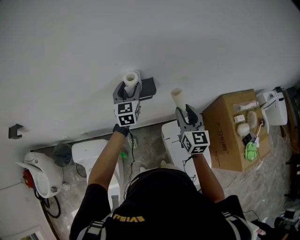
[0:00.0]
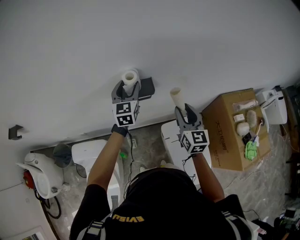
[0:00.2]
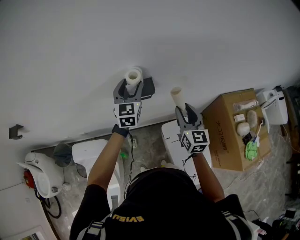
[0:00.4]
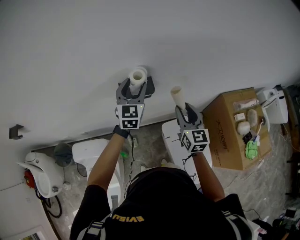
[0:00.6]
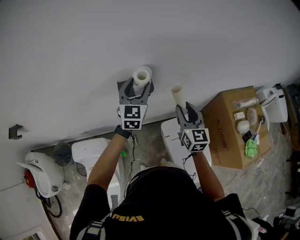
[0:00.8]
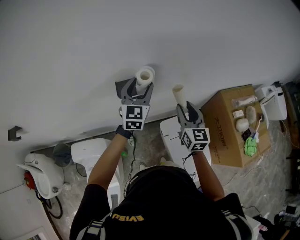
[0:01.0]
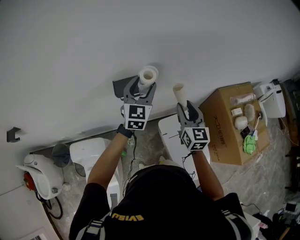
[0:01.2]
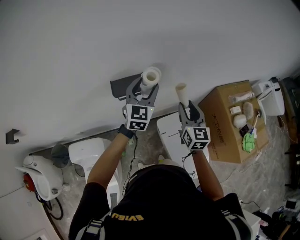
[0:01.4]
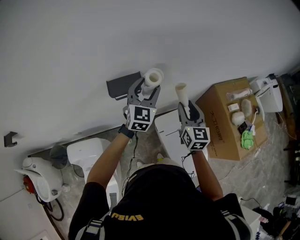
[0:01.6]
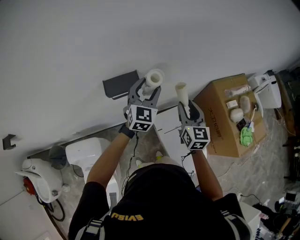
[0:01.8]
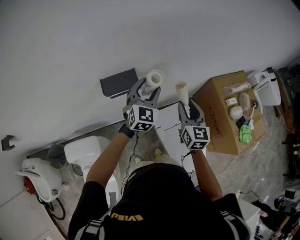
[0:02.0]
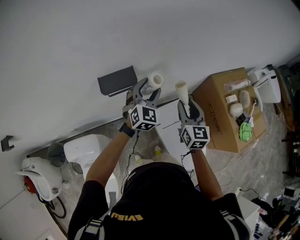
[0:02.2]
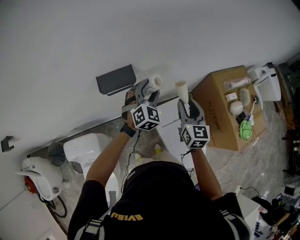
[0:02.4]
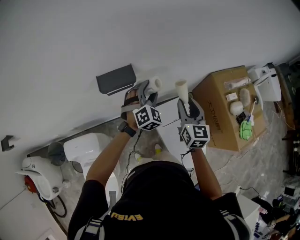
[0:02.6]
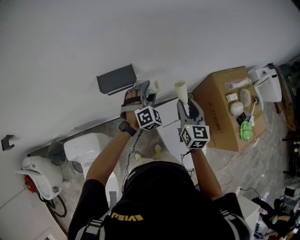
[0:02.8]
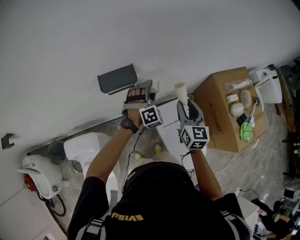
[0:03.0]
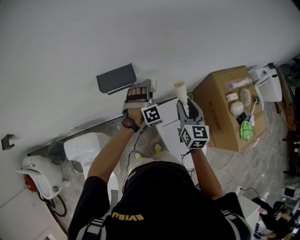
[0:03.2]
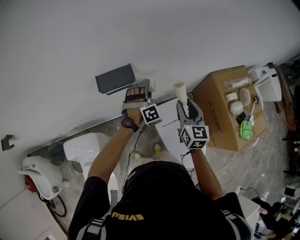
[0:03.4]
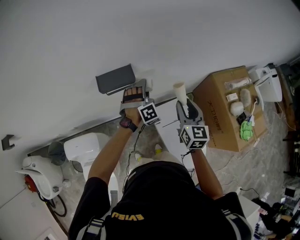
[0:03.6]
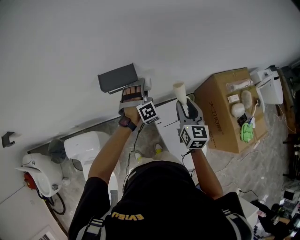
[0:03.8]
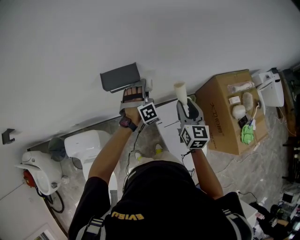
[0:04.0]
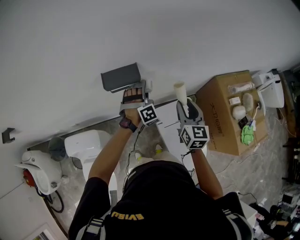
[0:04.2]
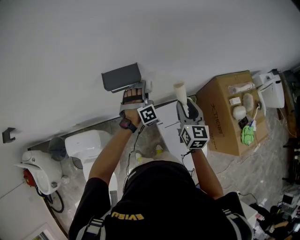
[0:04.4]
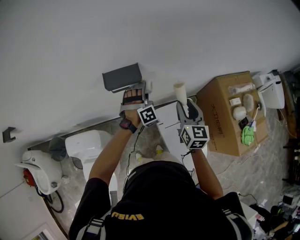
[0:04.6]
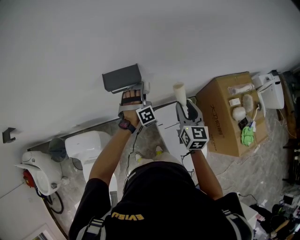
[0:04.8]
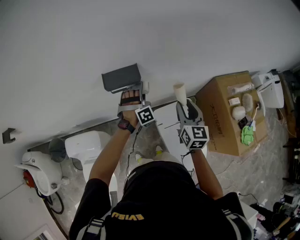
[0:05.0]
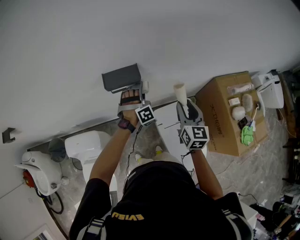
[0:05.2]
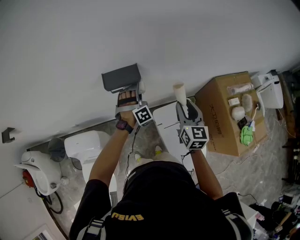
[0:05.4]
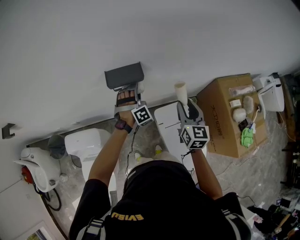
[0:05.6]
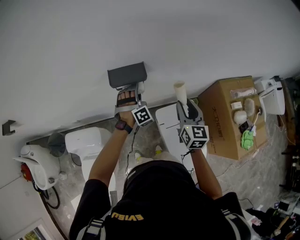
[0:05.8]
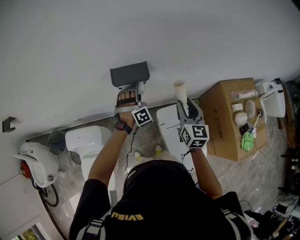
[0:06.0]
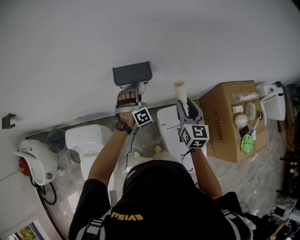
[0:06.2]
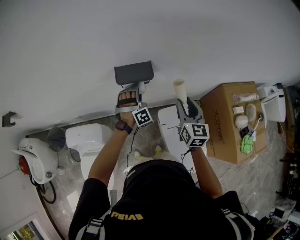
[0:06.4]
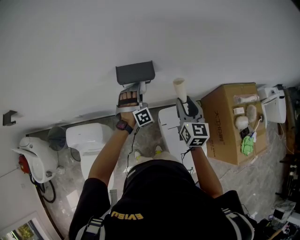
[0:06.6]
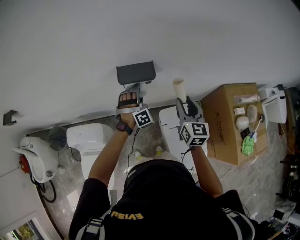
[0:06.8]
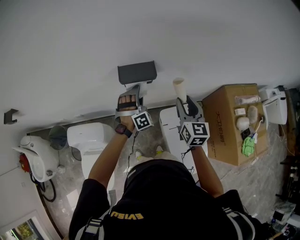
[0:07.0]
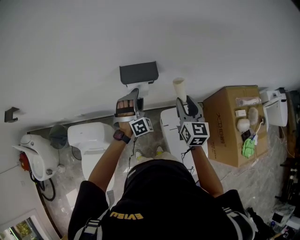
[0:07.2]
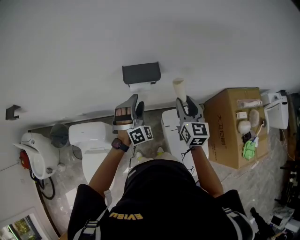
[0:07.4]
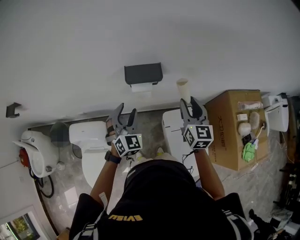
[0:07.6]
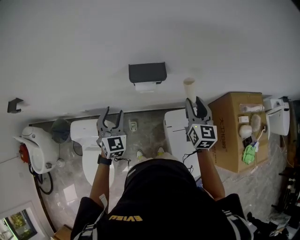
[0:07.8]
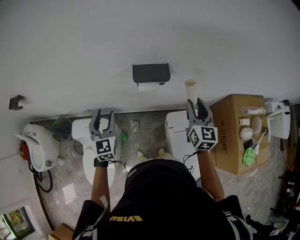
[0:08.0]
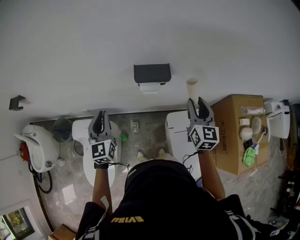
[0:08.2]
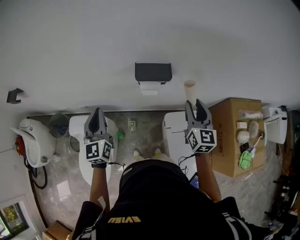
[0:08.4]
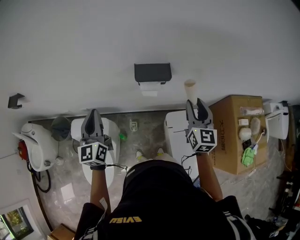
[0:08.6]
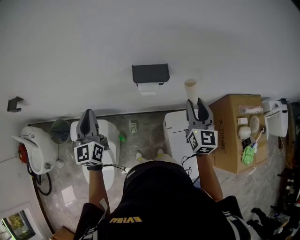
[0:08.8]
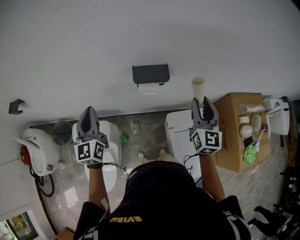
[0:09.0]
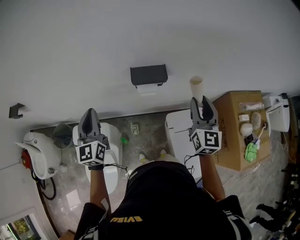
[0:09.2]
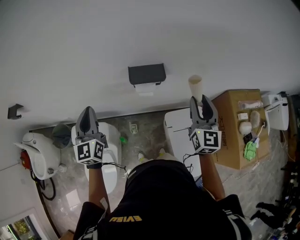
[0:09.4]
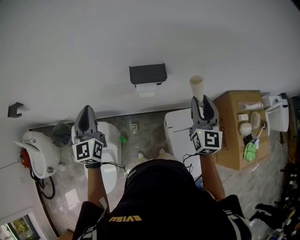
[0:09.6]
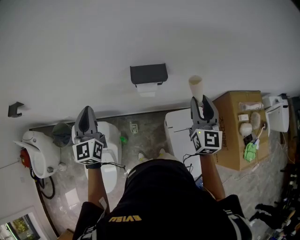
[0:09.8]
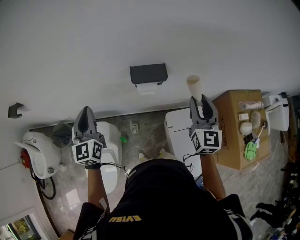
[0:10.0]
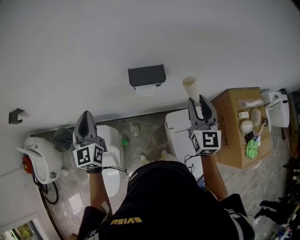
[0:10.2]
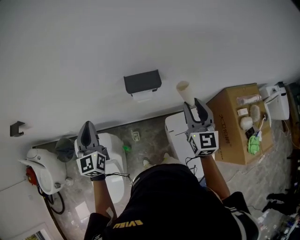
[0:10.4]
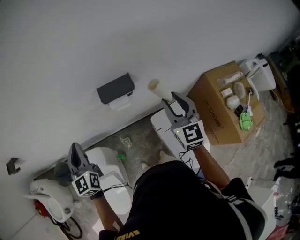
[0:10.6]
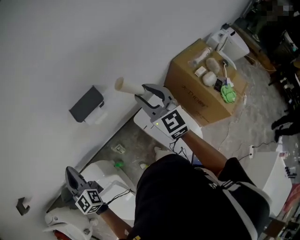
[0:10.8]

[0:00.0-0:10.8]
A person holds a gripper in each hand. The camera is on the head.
0:00.0 to 0:01.6: The left gripper travels to the right by approximately 15 cm, and swivels some 20 degrees; the right gripper heads to the right, covering roughly 5 cm.
0:01.6 to 0:03.0: The left gripper travels downward by approximately 15 cm, and rotates around the line of its fingers by about 50 degrees, clockwise from behind.
0:03.0 to 0:04.6: The grippers stay close to where they were, moving slightly.
0:04.6 to 0:06.2: The left gripper is displaced to the left by roughly 10 cm.
0:06.2 to 0:07.8: The left gripper heads to the left, backward and upward, covering about 25 cm, and twists about 50 degrees counterclockwise, seen from behind.
0:07.8 to 0:09.2: The right gripper shifts some 5 cm upward, while the left gripper is displaced upward and to the left by roughly 15 cm, changes its angle by some 30 degrees, and closes up.
0:09.2 to 0:10.8: There are only small adjustments of the grippers.

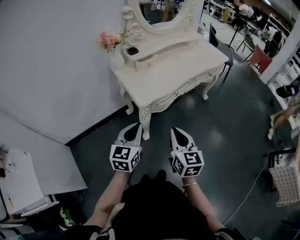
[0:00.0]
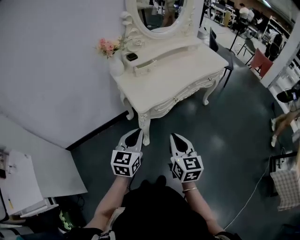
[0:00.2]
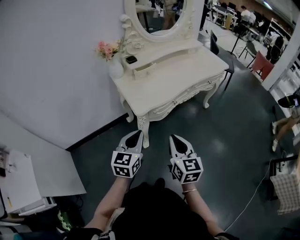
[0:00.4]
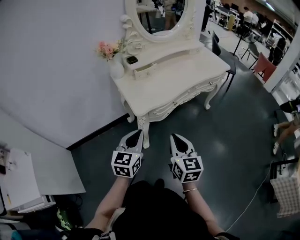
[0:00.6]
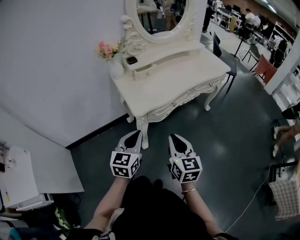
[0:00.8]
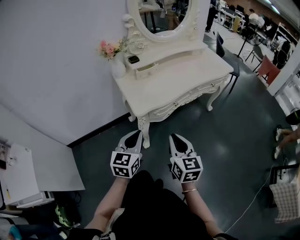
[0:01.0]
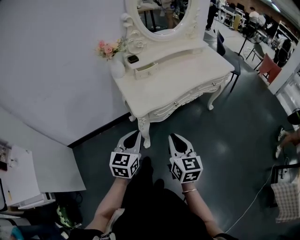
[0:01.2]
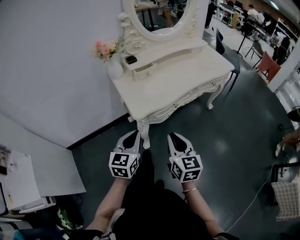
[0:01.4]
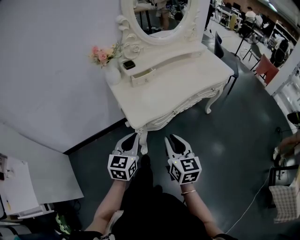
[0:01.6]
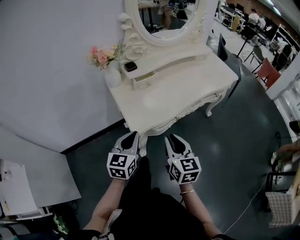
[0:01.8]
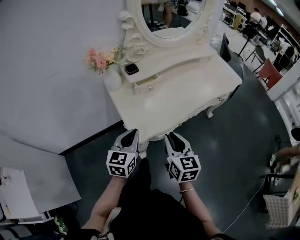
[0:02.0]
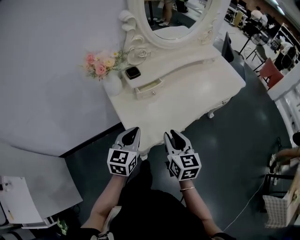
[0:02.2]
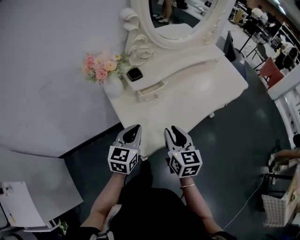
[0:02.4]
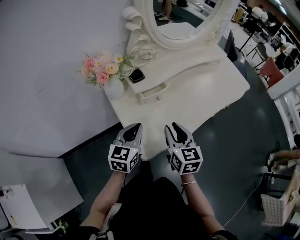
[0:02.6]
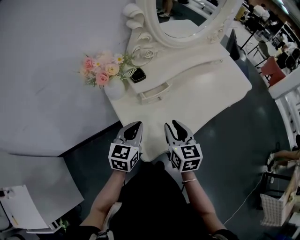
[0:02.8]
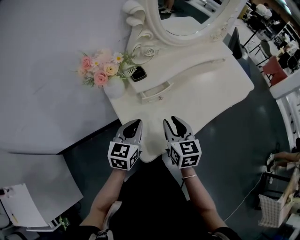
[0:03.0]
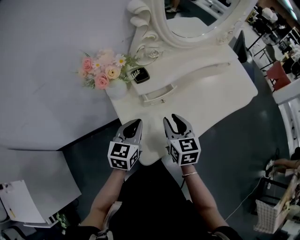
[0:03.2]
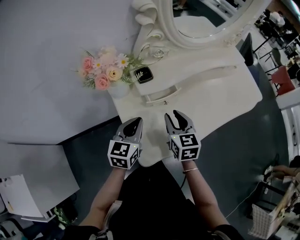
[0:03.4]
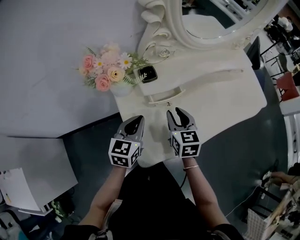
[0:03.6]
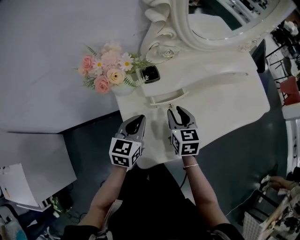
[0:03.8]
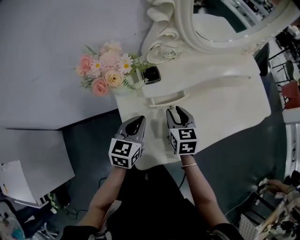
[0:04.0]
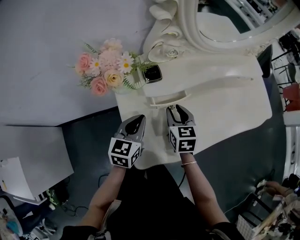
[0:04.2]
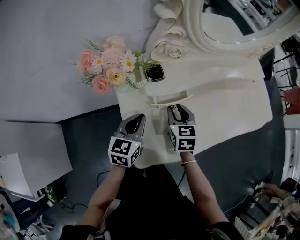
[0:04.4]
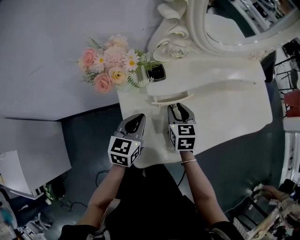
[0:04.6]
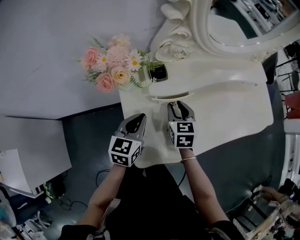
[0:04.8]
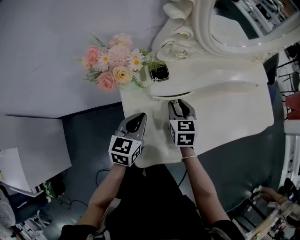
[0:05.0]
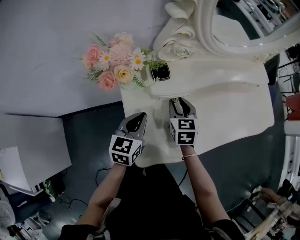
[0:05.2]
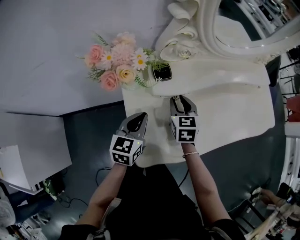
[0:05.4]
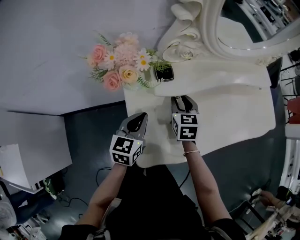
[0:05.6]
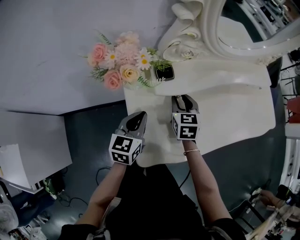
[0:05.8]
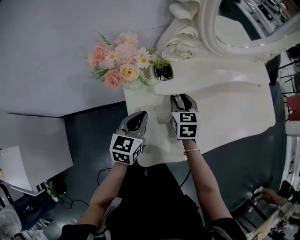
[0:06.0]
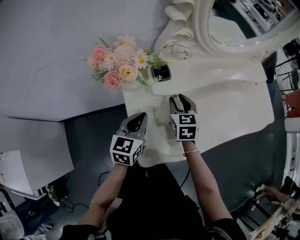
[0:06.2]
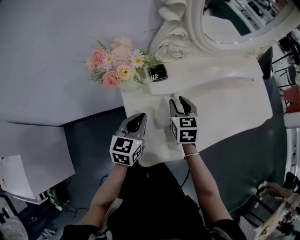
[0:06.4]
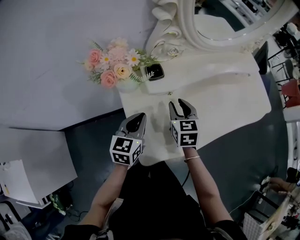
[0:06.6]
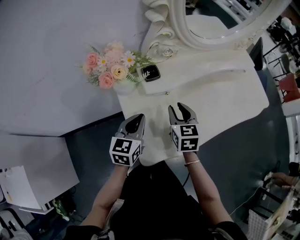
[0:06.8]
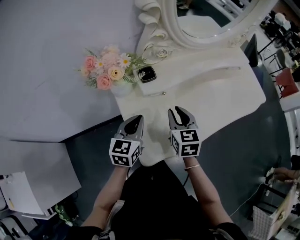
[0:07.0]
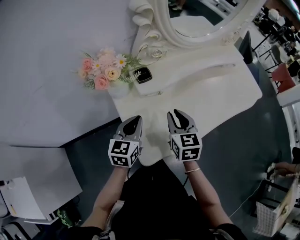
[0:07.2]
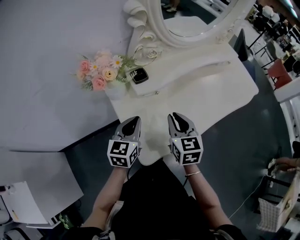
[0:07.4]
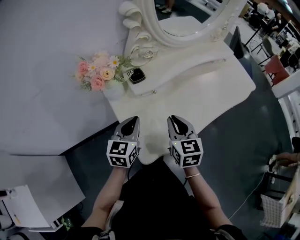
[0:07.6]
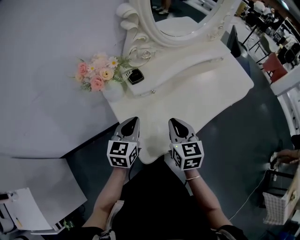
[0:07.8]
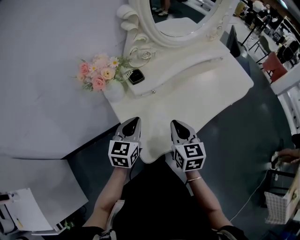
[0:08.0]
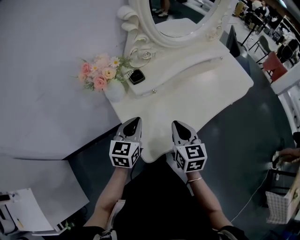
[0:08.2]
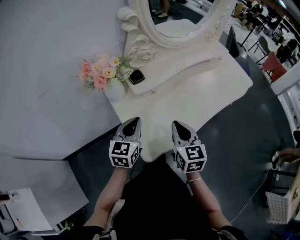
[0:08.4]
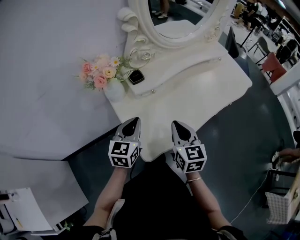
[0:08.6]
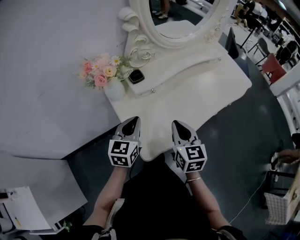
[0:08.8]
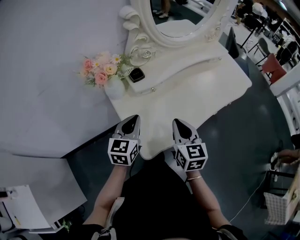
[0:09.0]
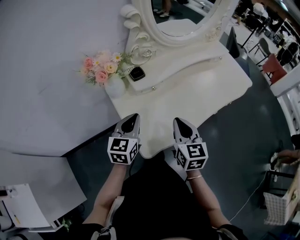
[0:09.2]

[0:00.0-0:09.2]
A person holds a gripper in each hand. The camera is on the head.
0:00.0 to 0:01.6: Both grippers move forward, roughly 10 cm.
0:01.6 to 0:03.0: Both grippers travel together forward, roughly 25 cm.
0:03.0 to 0:04.6: The right gripper travels forward and downward by some 15 cm. The left gripper heads forward, covering approximately 5 cm.
0:04.6 to 0:06.2: There are only small adjustments of the grippers.
0:06.2 to 0:07.6: The right gripper heads backward and upward, covering roughly 15 cm, and closes. The left gripper shifts by some 5 cm.
0:07.6 to 0:09.2: The right gripper shifts by approximately 5 cm.

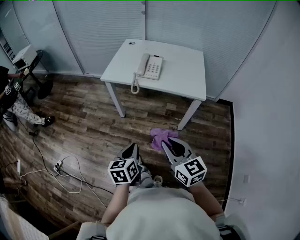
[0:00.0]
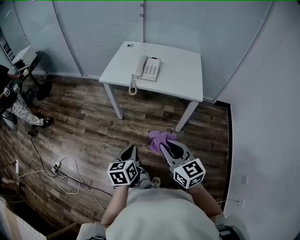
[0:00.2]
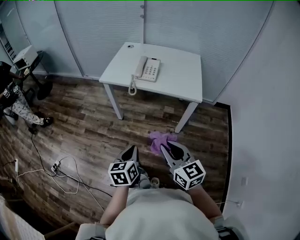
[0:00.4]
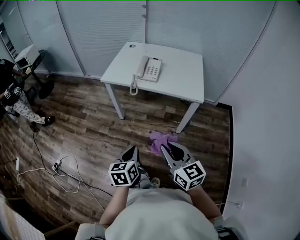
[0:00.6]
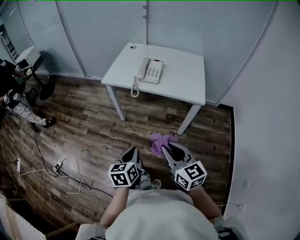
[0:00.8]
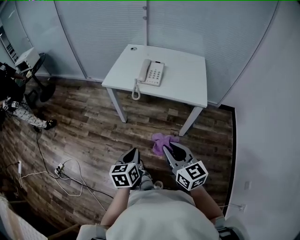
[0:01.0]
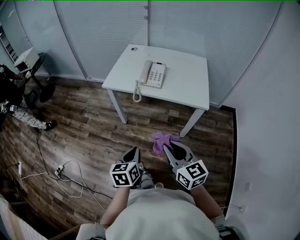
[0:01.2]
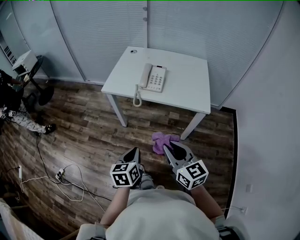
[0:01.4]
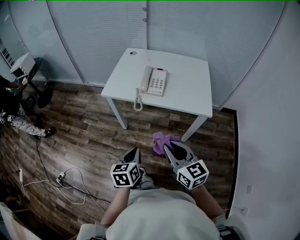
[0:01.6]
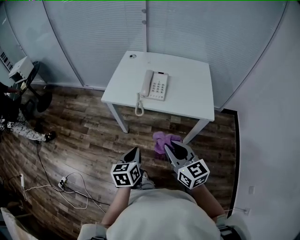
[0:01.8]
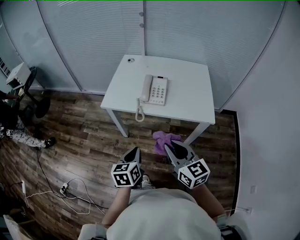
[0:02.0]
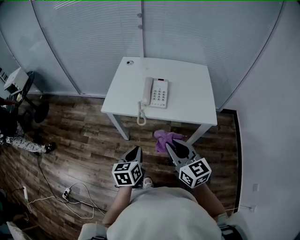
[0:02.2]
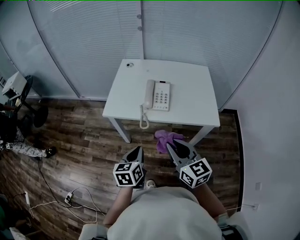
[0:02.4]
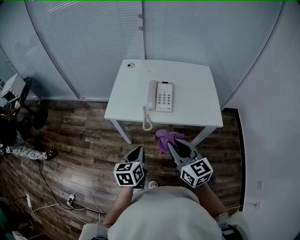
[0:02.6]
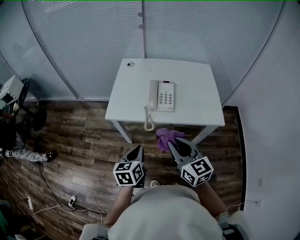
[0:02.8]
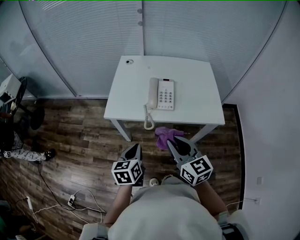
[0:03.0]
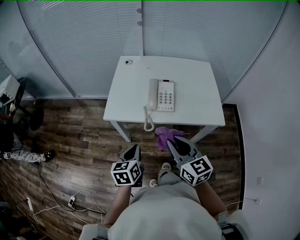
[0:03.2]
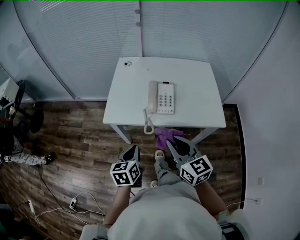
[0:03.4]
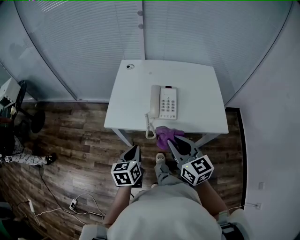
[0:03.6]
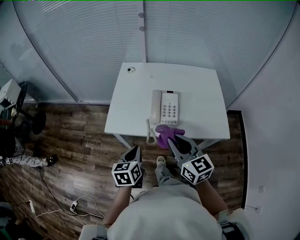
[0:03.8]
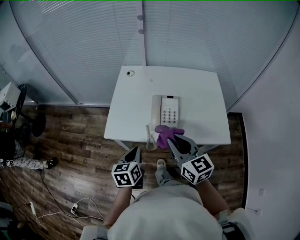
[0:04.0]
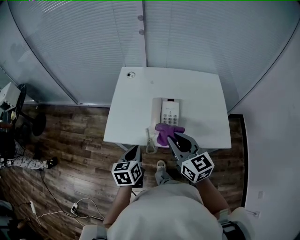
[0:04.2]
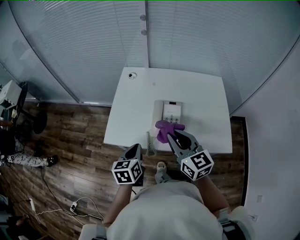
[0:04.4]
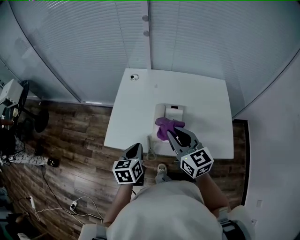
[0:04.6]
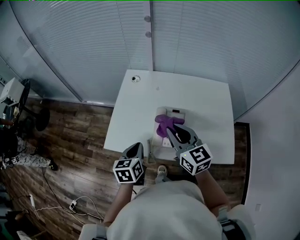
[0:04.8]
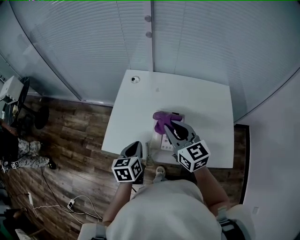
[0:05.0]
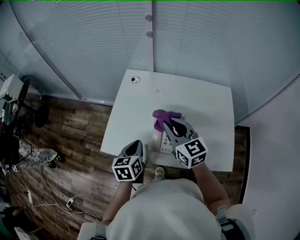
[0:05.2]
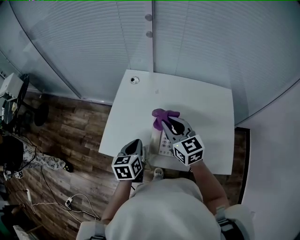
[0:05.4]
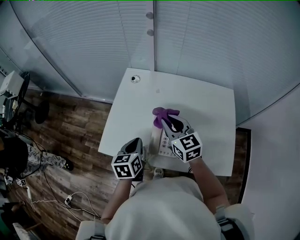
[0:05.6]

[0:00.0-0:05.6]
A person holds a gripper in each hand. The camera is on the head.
0:00.0 to 0:01.4: The grippers both shift forward by roughly 5 cm.
0:01.4 to 0:02.8: The right gripper goes roughly 20 cm forward and to the left. Meanwhile the left gripper goes approximately 20 cm forward.
0:02.8 to 0:04.2: Both grippers travel together forward, some 15 cm.
0:04.2 to 0:05.6: Both grippers move forward, approximately 20 cm.
